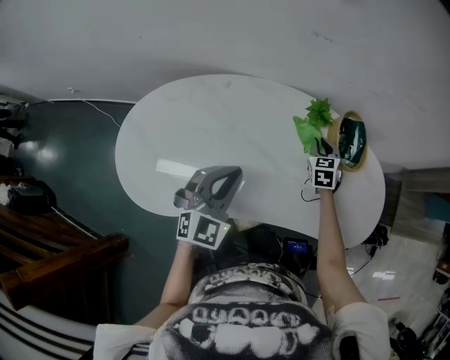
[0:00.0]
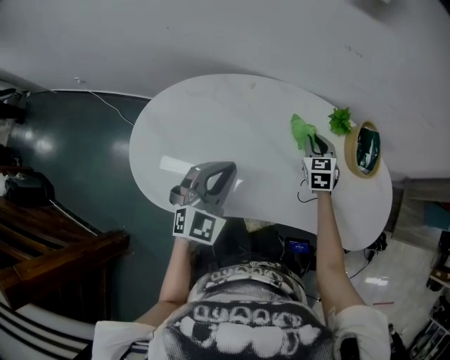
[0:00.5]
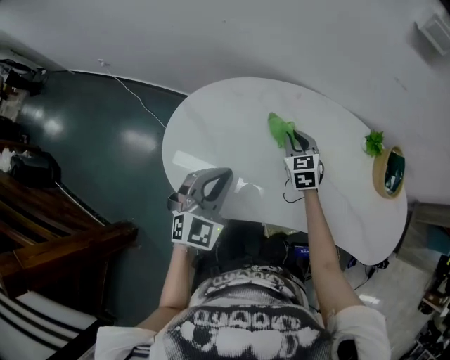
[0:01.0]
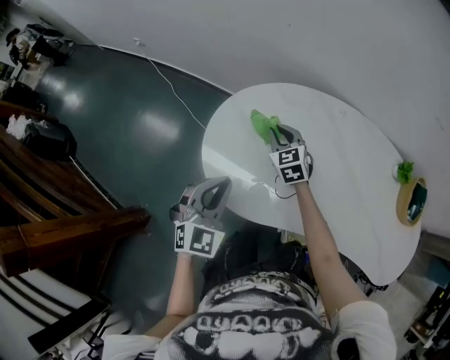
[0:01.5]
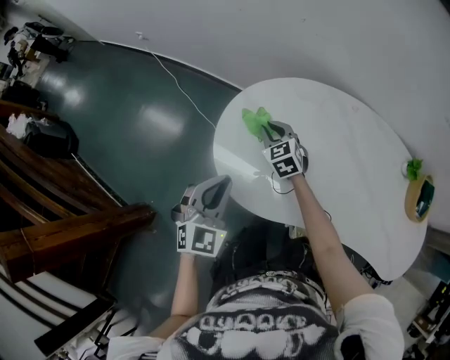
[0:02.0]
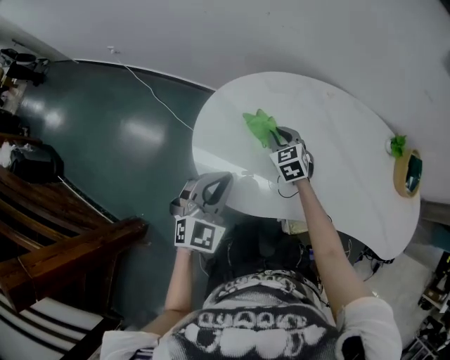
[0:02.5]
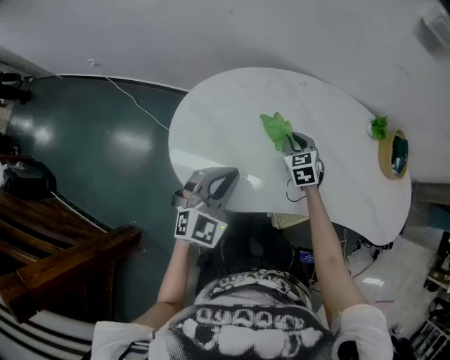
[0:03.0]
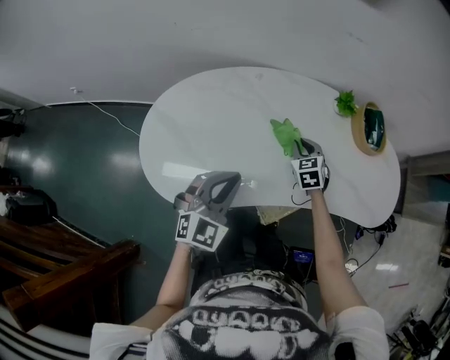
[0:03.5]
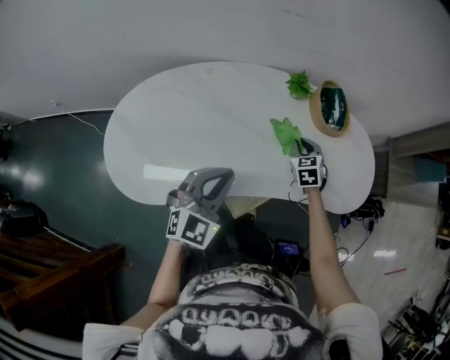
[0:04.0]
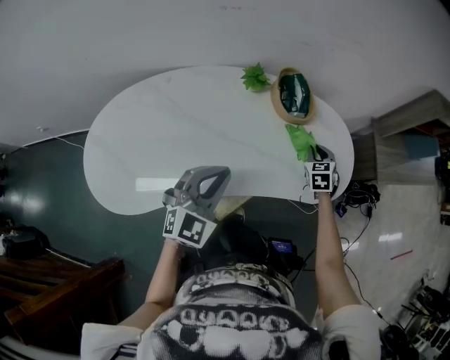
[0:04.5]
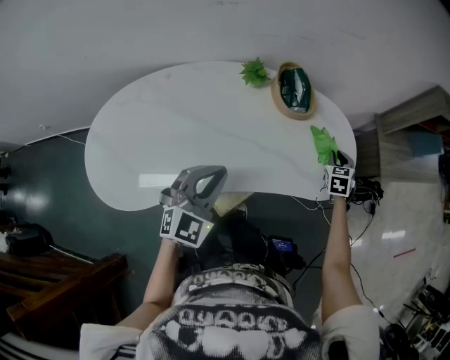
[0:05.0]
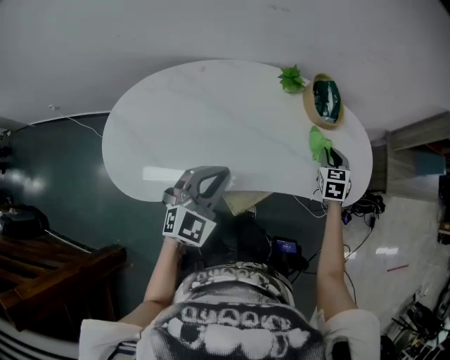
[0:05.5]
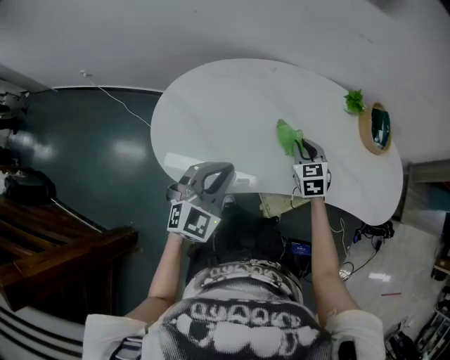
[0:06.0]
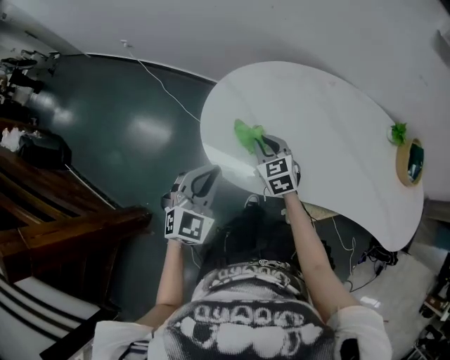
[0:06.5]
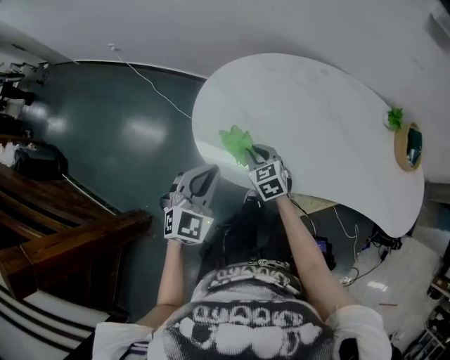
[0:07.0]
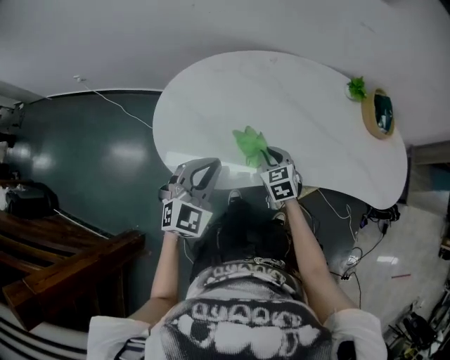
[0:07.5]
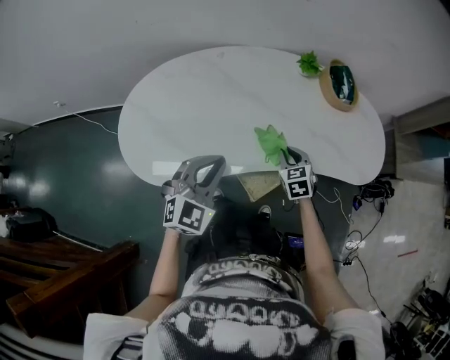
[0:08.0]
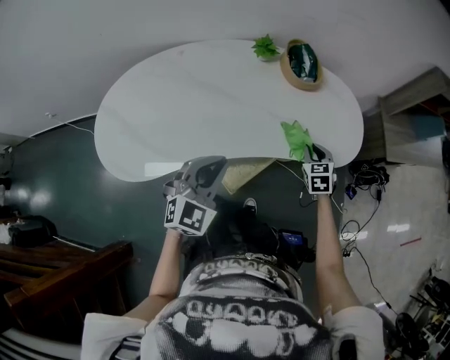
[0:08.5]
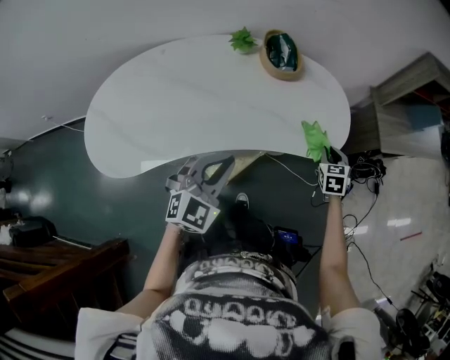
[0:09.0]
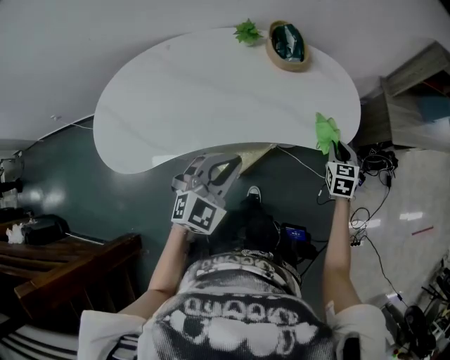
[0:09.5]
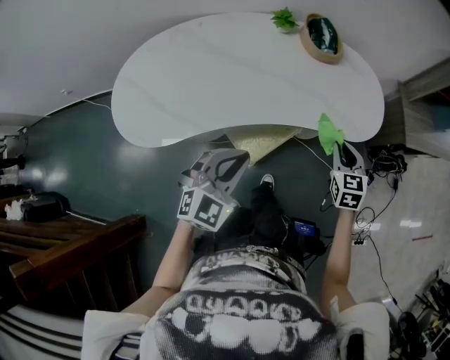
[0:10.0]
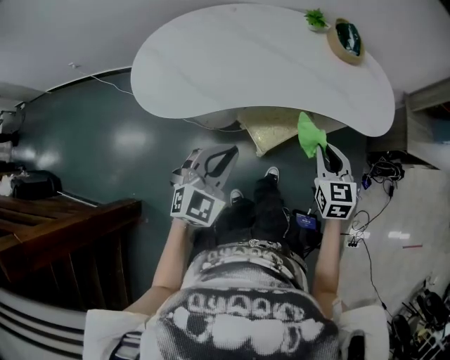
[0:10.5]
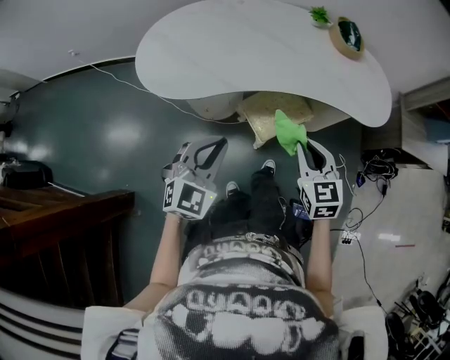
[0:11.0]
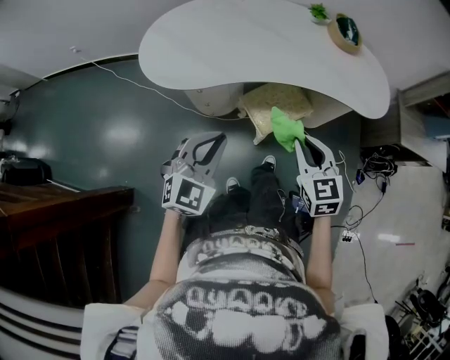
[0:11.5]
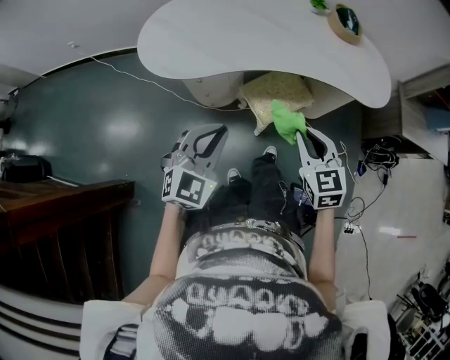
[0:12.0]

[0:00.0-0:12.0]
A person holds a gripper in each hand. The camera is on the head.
0:00.0 to 0:02.0: Both grippers are carried about 60 cm. The right gripper rotates about 50 degrees. The left gripper turns by about 30 degrees.
0:02.0 to 0:04.0: The two grippers travel together, about 50 cm. The left gripper changes its angle by approximately 40 degrees. Meanwhile the right gripper changes its angle by some 40 degrees.
0:04.0 to 0:06.0: The left gripper ends up about 20 cm from where it was. The right gripper shifts by approximately 25 cm.
0:08.0 to 0:10.0: The grippers both shift to the right by some 25 cm.
0:10.0 to 0:12.0: The right gripper is displaced to the left and backward by roughly 35 cm, and changes its angle by roughly 20 degrees, while the left gripper shifts roughly 25 cm backward and to the left.

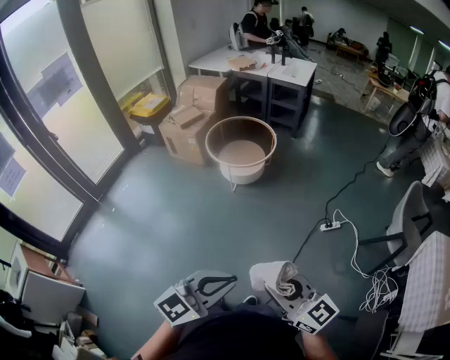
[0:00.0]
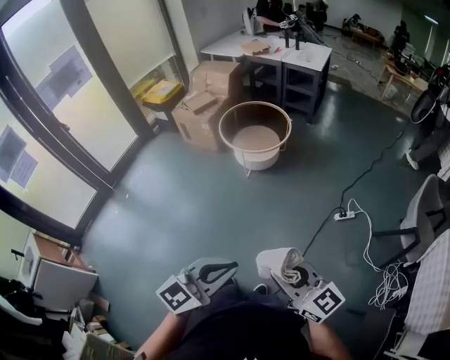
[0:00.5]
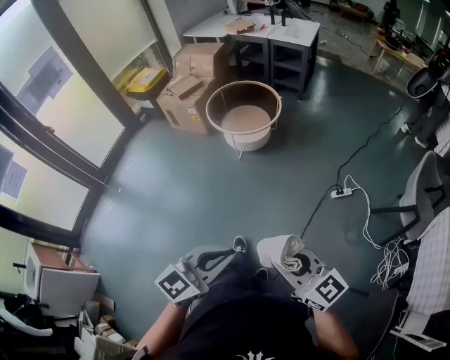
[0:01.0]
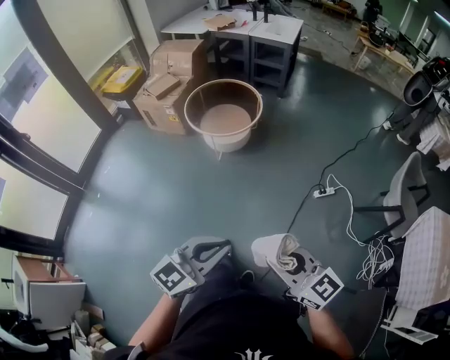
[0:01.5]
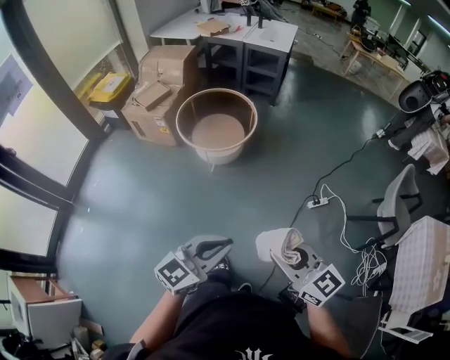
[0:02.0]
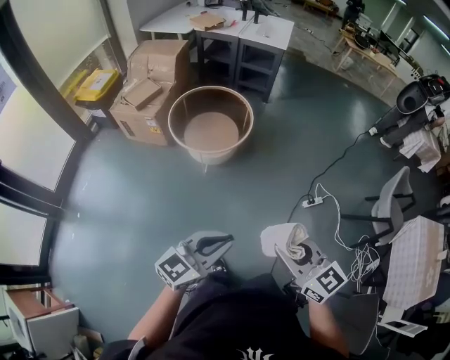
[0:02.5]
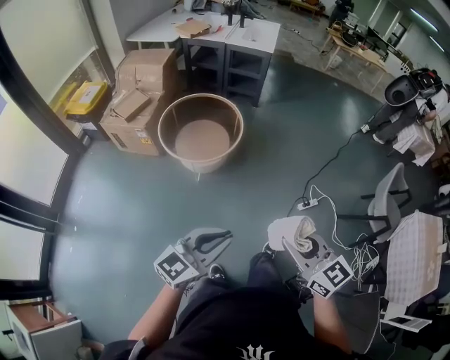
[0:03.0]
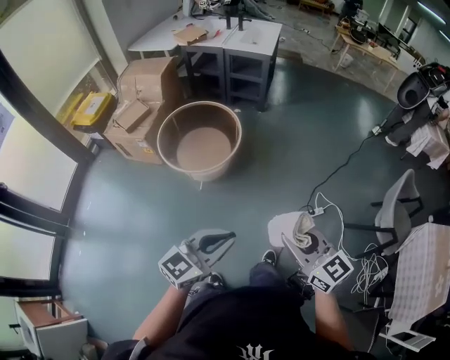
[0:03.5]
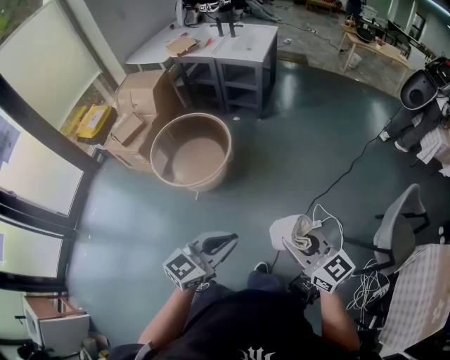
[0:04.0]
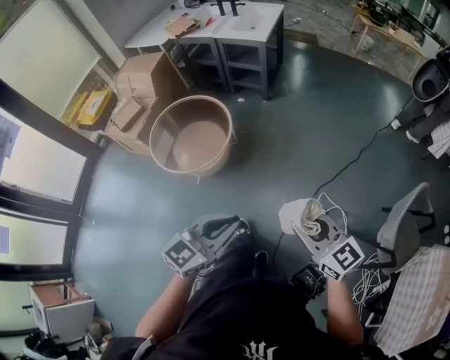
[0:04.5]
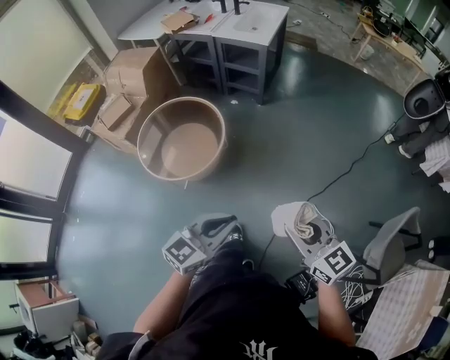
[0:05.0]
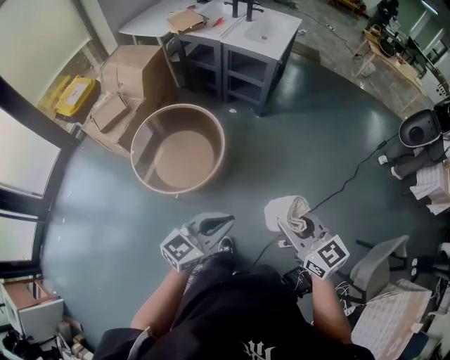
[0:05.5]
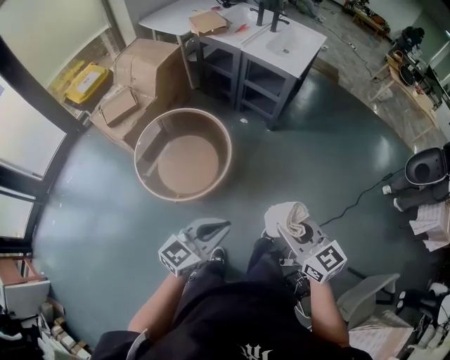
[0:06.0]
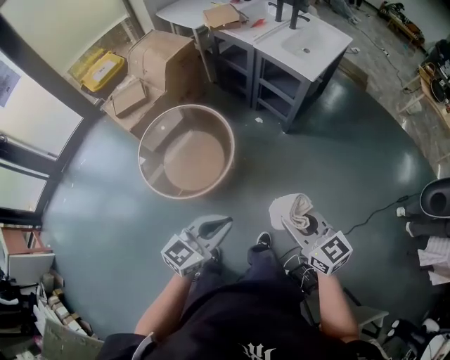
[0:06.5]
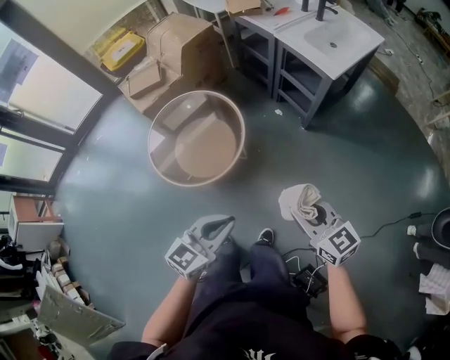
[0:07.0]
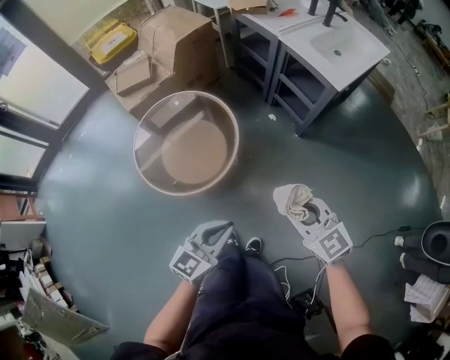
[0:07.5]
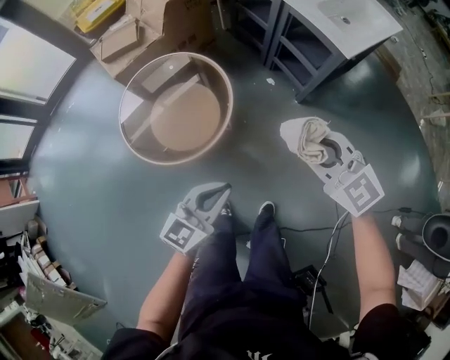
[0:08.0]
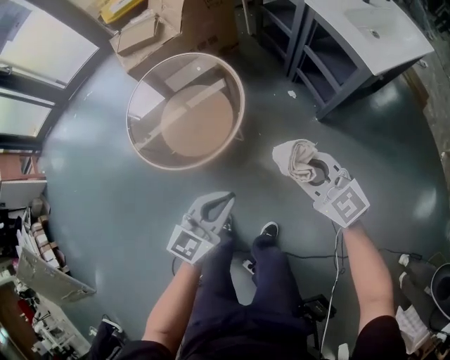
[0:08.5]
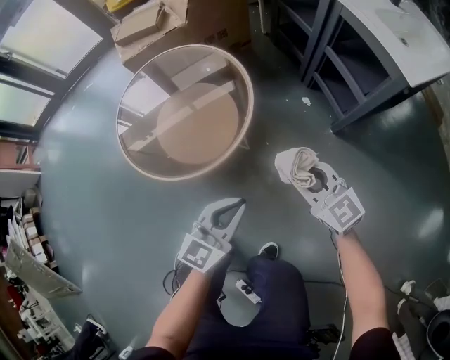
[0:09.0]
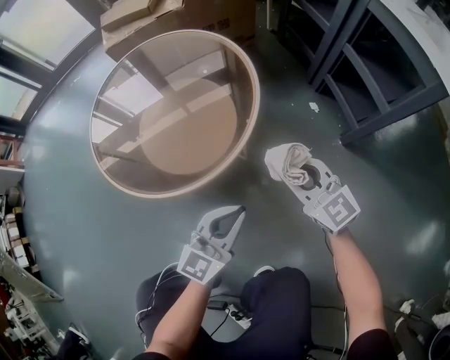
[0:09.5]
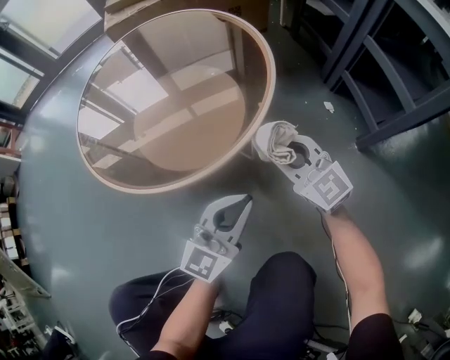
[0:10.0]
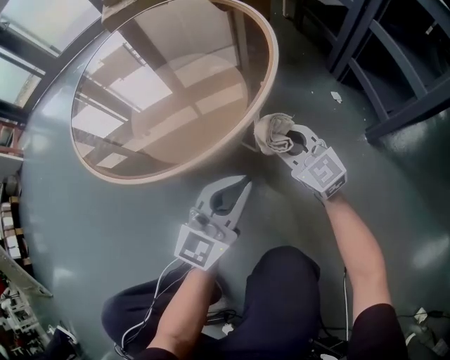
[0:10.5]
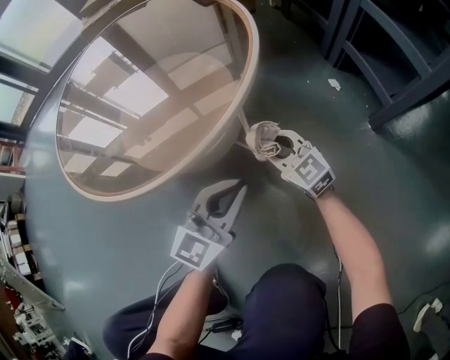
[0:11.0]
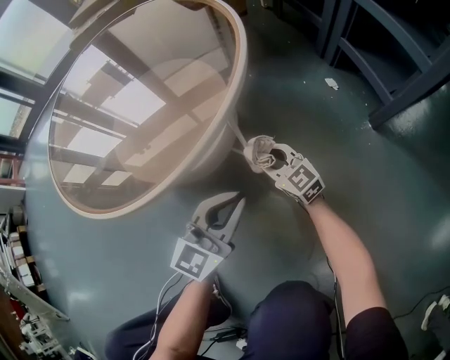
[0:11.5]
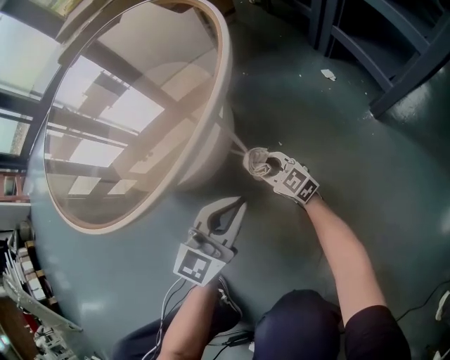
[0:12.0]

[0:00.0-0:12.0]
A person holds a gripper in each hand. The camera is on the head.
0:00.0 to 0:02.0: Both grippers move forward, some 25 cm.
0:02.0 to 0:04.0: The two grippers go some 40 cm forward and to the right.
0:04.0 to 0:06.0: Both grippers move forward, roughly 35 cm.
0:06.0 to 0:08.0: The right gripper ends up some 40 cm from where it was, and swivels some 40 degrees. The left gripper shifts by some 30 cm, and turns by approximately 30 degrees.
0:08.0 to 0:10.0: Both grippers move downward, roughly 50 cm. The left gripper rotates about 30 degrees, while the right gripper swivels roughly 20 degrees.
0:10.0 to 0:12.0: The left gripper travels downward by about 15 cm. The right gripper shifts some 35 cm downward.

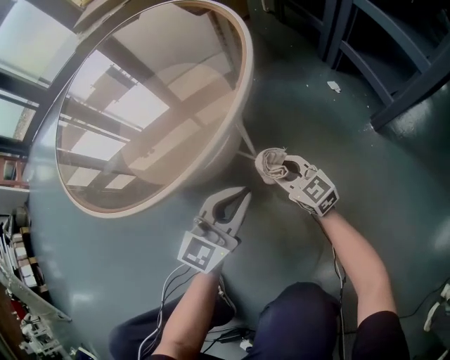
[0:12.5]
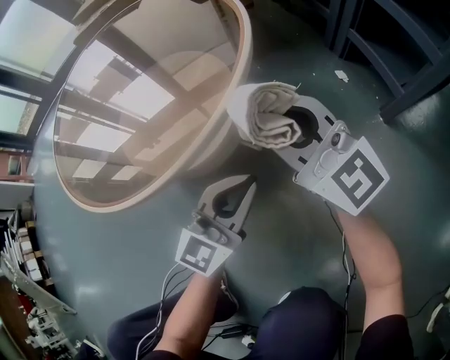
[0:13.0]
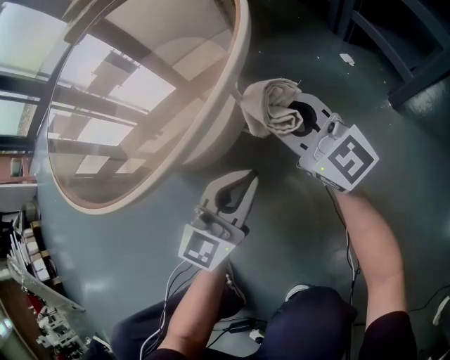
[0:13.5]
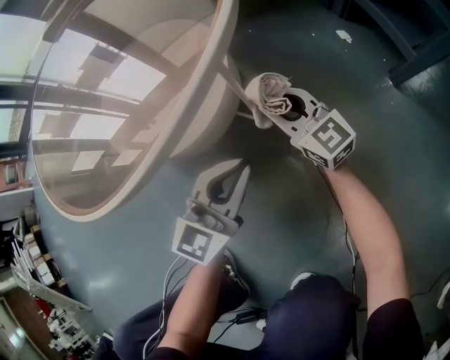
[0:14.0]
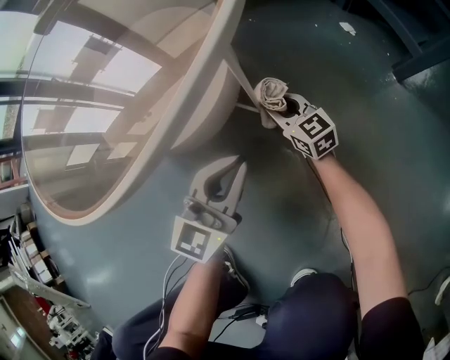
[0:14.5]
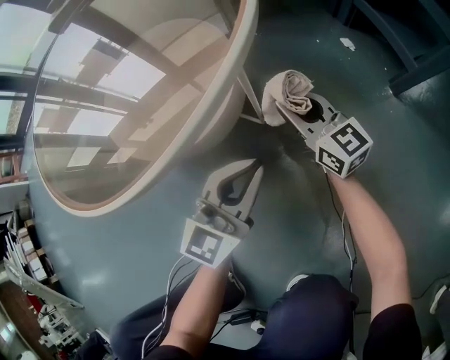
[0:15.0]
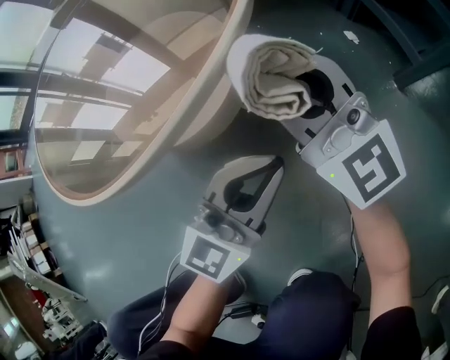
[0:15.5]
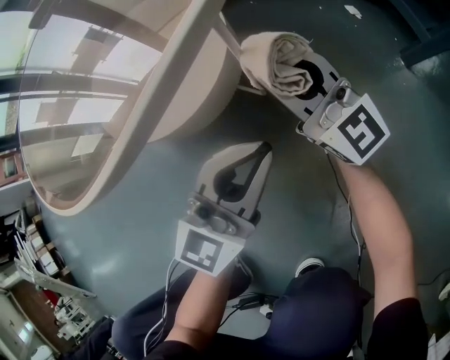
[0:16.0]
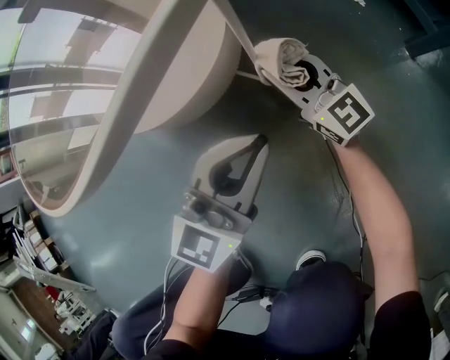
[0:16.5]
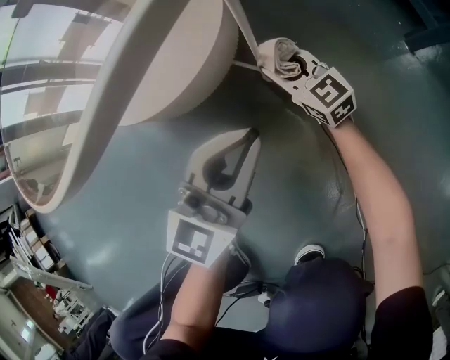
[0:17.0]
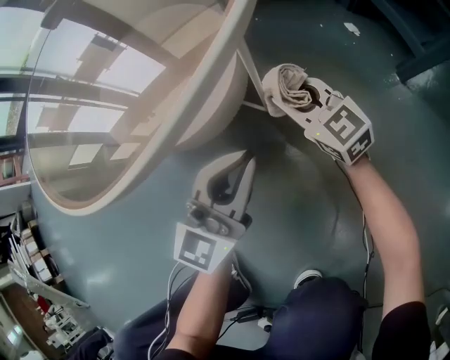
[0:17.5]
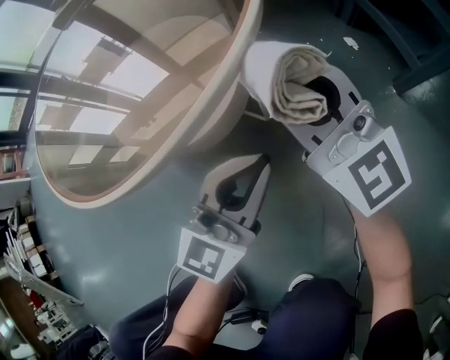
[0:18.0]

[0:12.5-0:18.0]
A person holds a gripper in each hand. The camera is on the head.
0:12.5 to 0:14.5: The left gripper shifts some 5 cm downward. The right gripper heads forward, covering about 5 cm, and goes upward and returns, about 25 cm each way.
0:14.5 to 0:16.0: The right gripper goes about 20 cm upward, and rotates some 30 degrees; the left gripper shifts some 5 cm upward.
0:16.0 to 0:18.0: The right gripper is displaced upward by some 10 cm.
